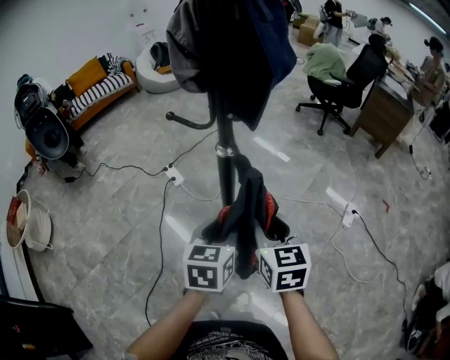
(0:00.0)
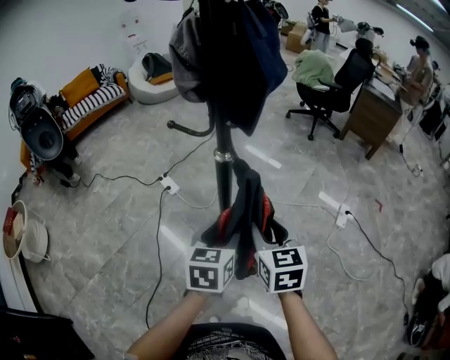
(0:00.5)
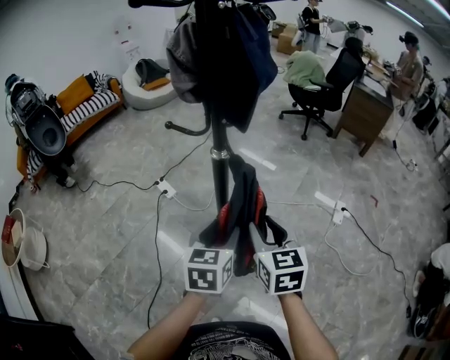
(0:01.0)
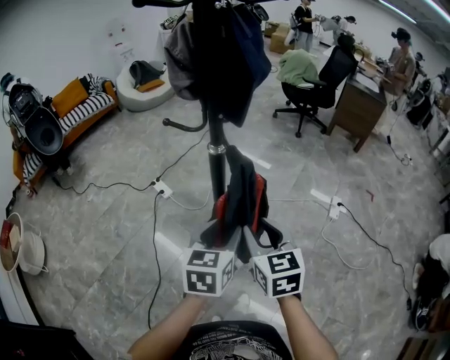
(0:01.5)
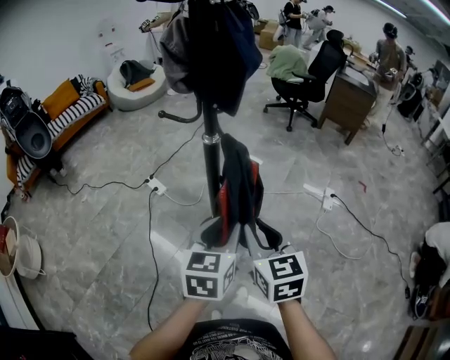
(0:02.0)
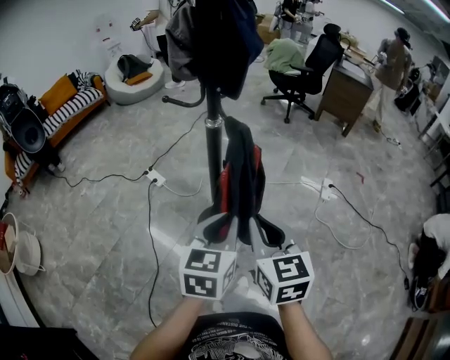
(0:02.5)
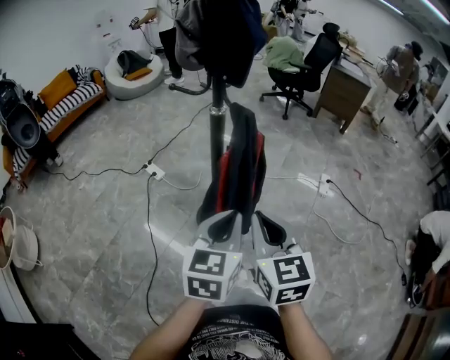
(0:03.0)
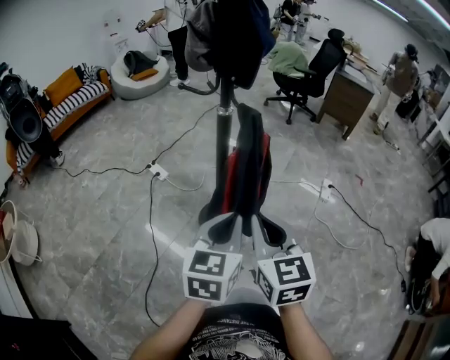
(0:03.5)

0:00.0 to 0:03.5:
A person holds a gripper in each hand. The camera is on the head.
0:00.0 to 0:02.0: The right gripper moves backward, some 10 cm. Meanwhile the left gripper goes approximately 10 cm backward and upward.
0:02.0 to 0:03.5: The two grippers go about 10 cm backward. The left gripper closes, while the right gripper closes up.

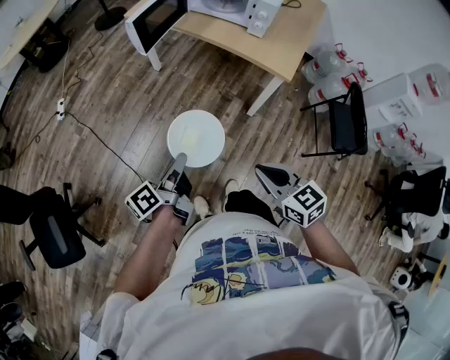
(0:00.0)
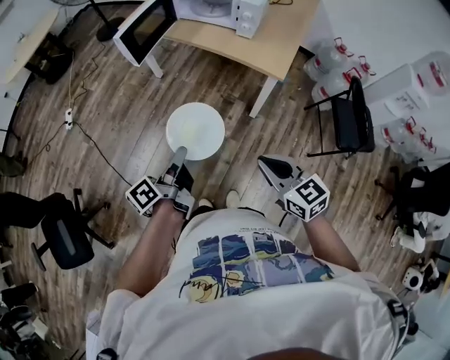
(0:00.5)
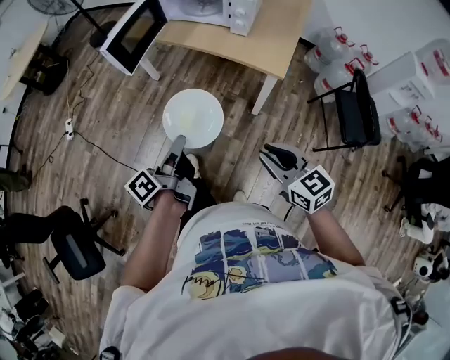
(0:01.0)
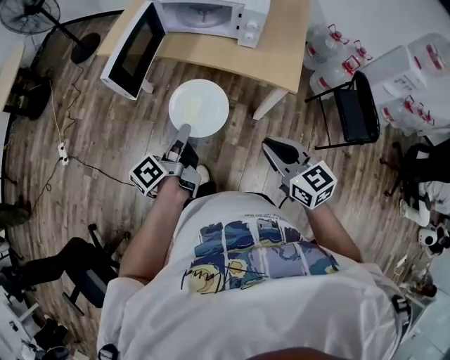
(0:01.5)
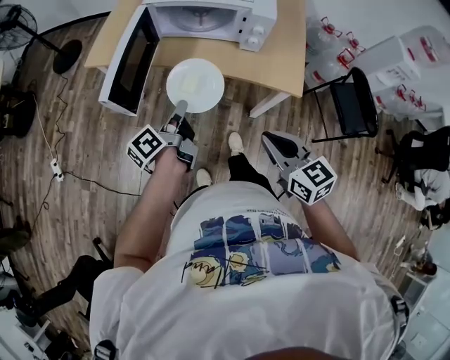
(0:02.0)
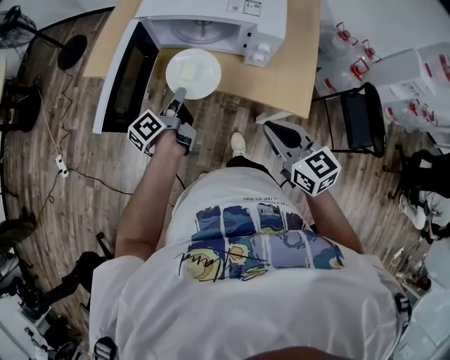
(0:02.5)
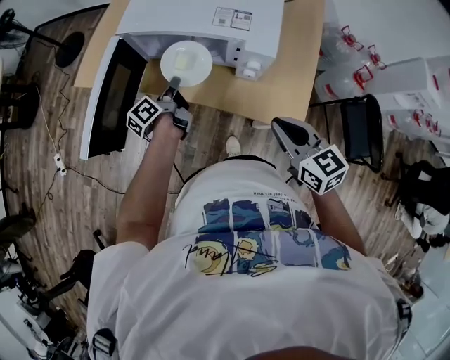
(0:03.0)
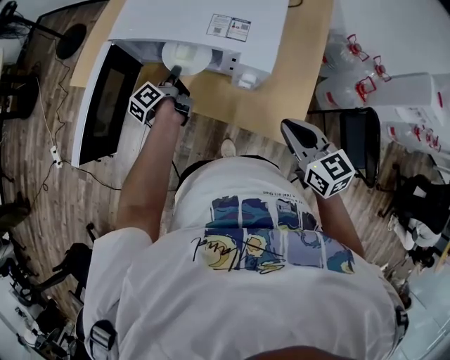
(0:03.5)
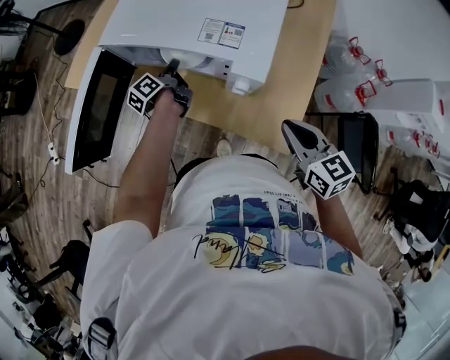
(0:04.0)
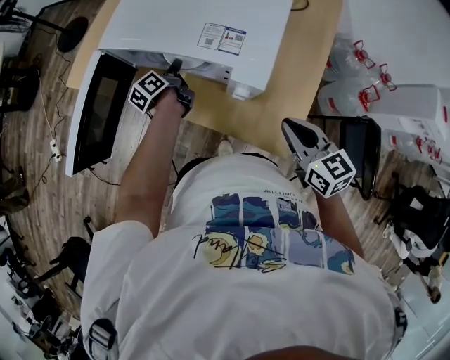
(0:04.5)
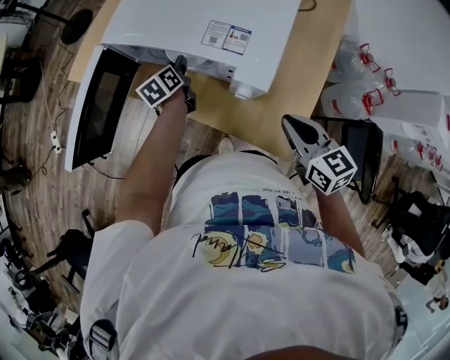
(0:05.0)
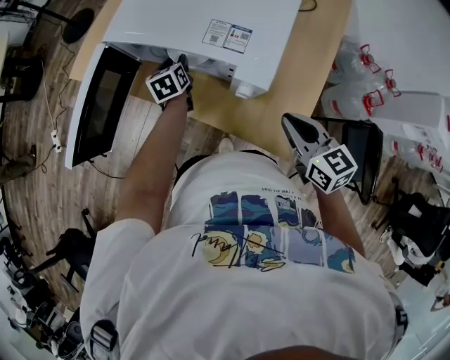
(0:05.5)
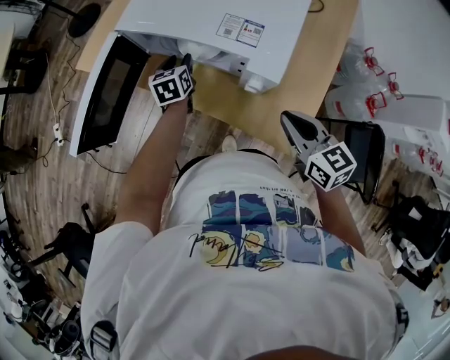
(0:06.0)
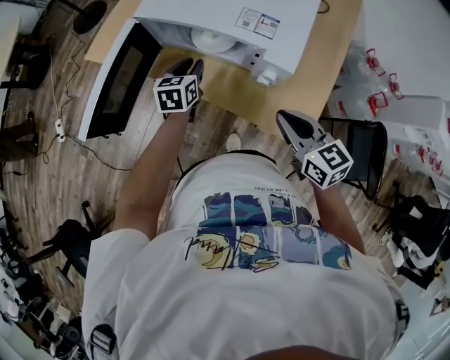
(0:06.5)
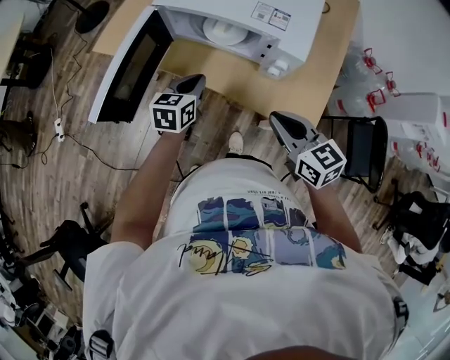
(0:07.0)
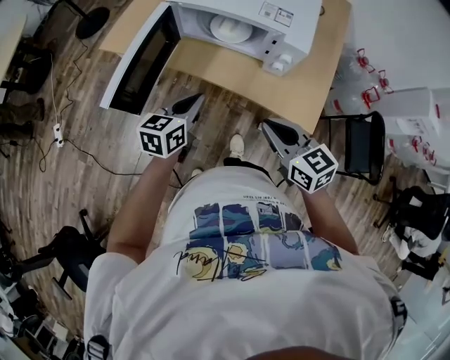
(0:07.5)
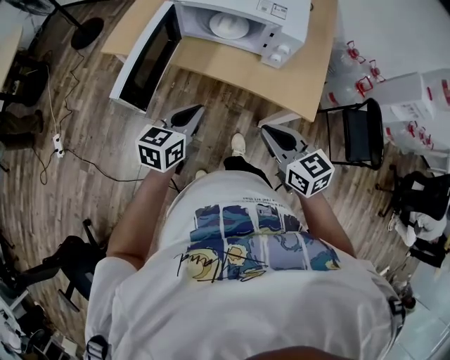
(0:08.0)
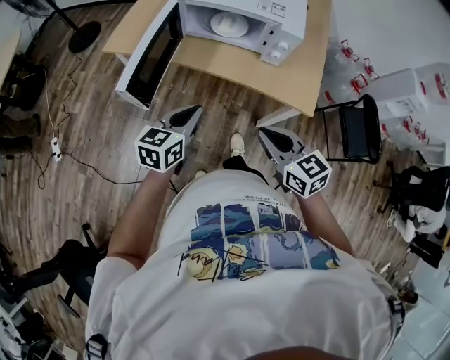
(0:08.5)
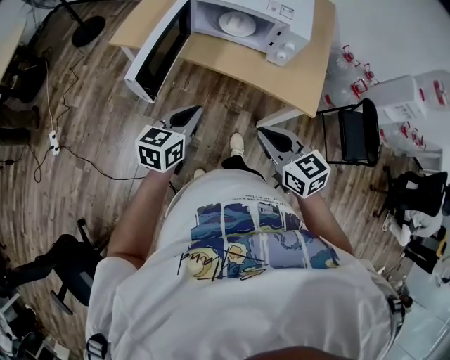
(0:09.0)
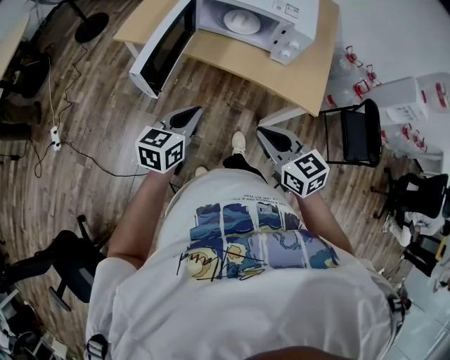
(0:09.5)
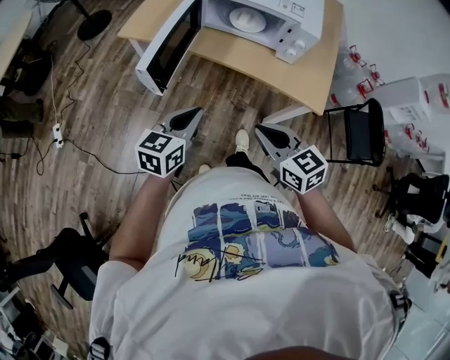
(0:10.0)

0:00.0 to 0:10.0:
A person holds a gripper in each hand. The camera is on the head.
0:00.0 to 0:02.0: The two grippers go roughly 35 cm forward. The right gripper swivels some 20 degrees.
0:02.0 to 0:04.0: The left gripper travels forward by about 30 cm. The right gripper moves forward and to the right, roughly 30 cm.
0:04.0 to 0:06.0: The left gripper rolls clockwise, seen from behind, by approximately 60 degrees, and opens up.
0:06.0 to 0:08.0: The left gripper heads backward, covering roughly 30 cm, rotates about 40 degrees, and closes up. The right gripper shifts approximately 25 cm to the left and backward.
0:08.0 to 0:10.0: Both grippers travel together to the left and backward, approximately 10 cm.

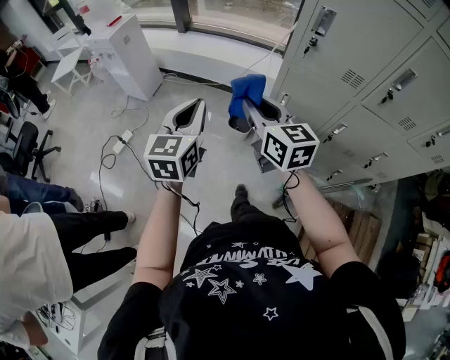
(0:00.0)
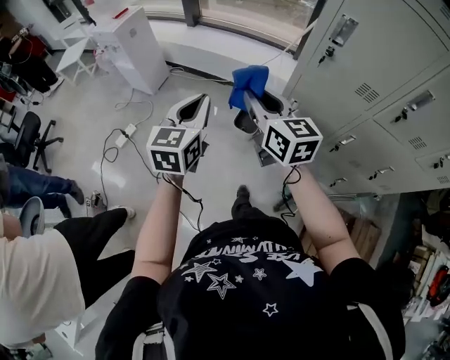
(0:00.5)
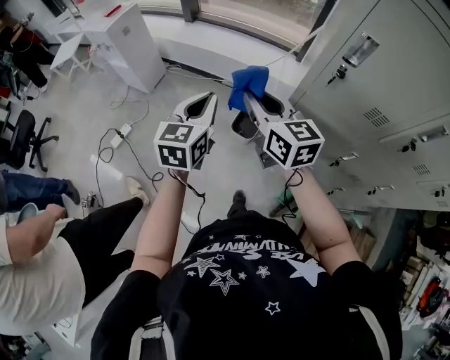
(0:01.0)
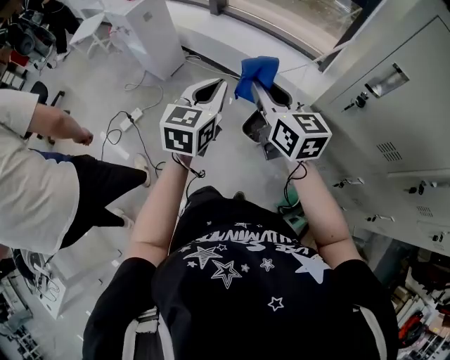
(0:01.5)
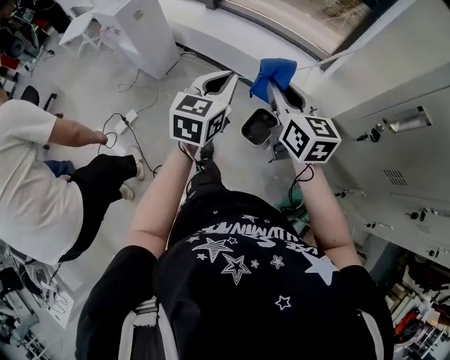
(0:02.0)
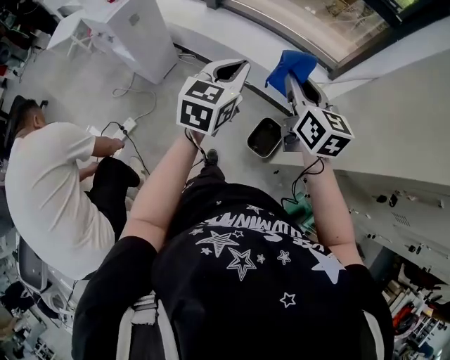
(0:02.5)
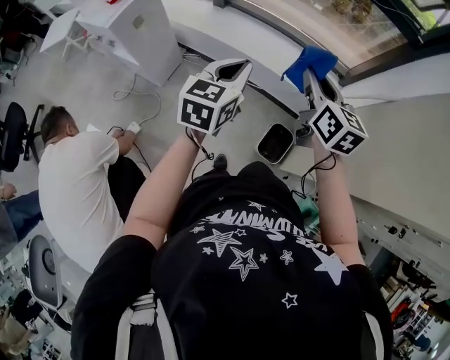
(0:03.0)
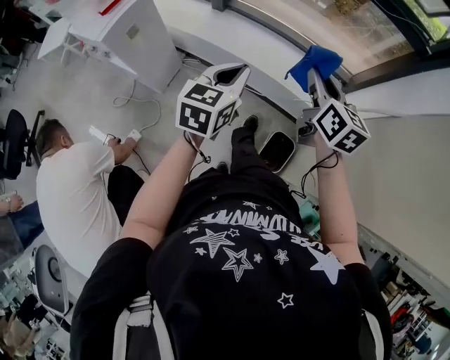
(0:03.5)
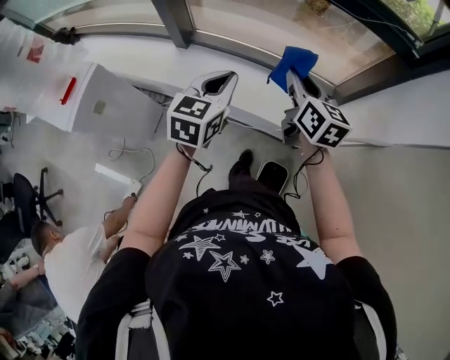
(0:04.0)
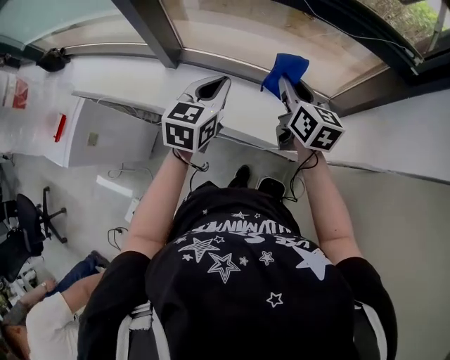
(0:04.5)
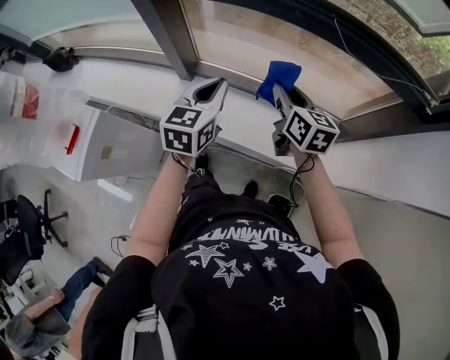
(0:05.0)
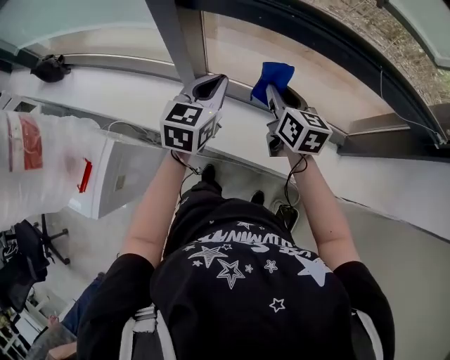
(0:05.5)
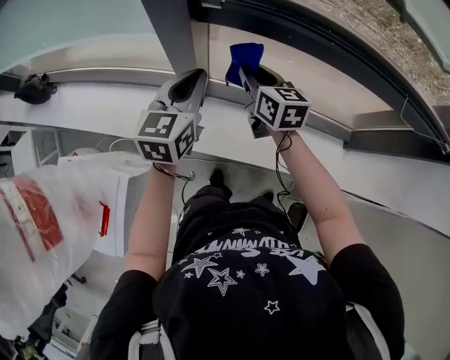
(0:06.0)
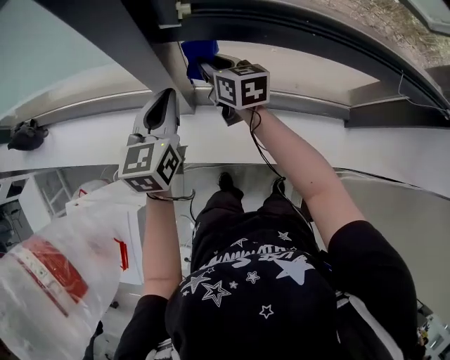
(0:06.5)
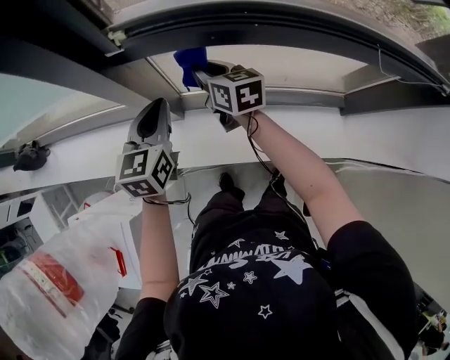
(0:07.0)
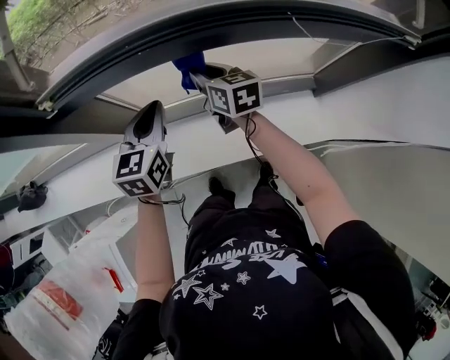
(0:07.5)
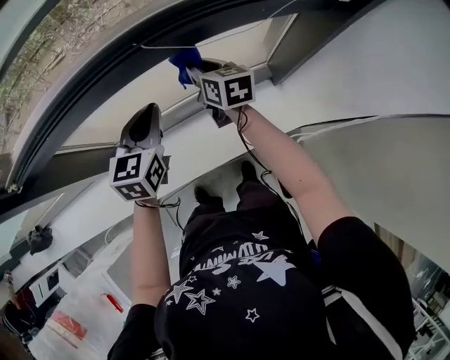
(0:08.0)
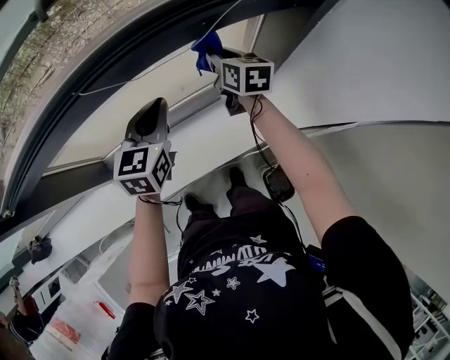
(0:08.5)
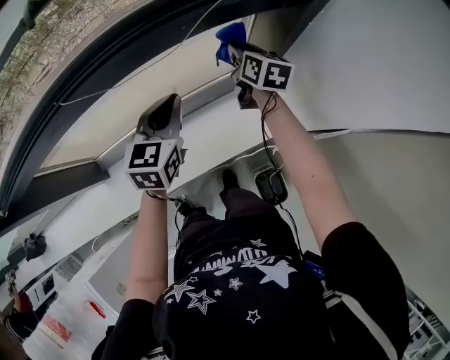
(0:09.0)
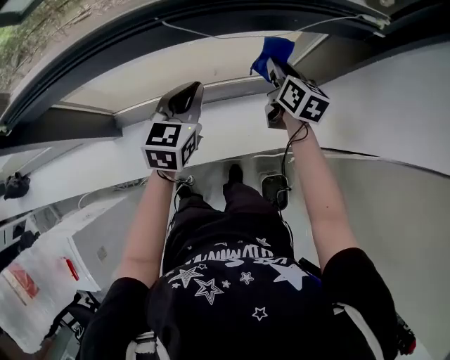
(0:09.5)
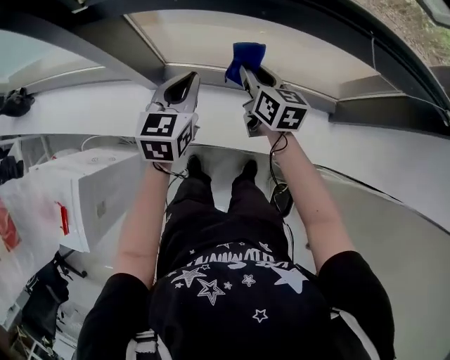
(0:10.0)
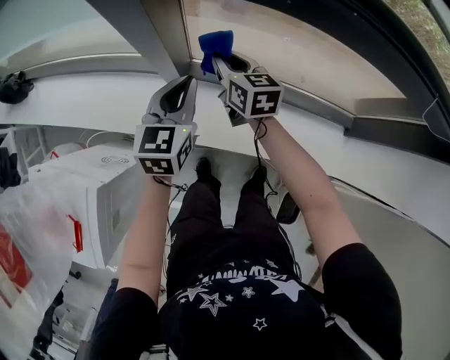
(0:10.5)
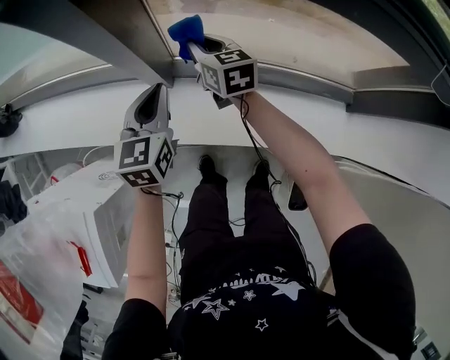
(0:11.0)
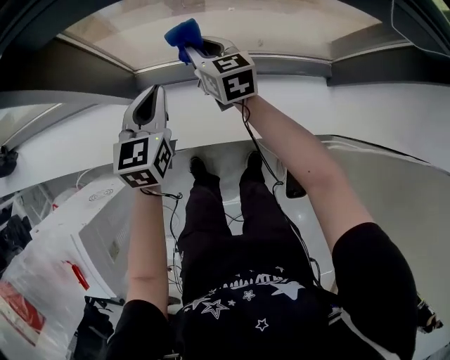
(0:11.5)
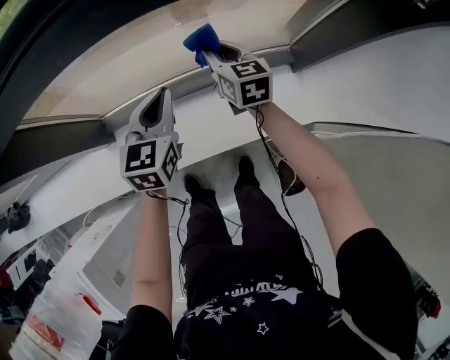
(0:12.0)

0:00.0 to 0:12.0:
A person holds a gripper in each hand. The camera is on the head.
0:00.0 to 0:02.0: The grippers both shift forward by some 25 cm.
0:02.0 to 0:04.0: The pair of grippers is taken forward, about 50 cm. The right gripper rotates some 20 degrees.
0:04.0 to 0:06.0: The pair of grippers is taken to the left and forward, some 50 cm.
0:06.0 to 0:08.0: The two grippers go about 40 cm to the right. The left gripper swivels roughly 30 degrees. Meanwhile the right gripper rotates about 30 degrees.
0:08.0 to 0:10.0: The right gripper ends up roughly 20 cm from where it was. The left gripper ends up roughly 20 cm from where it was, and rotates approximately 20 degrees.
0:10.0 to 0:12.0: The right gripper moves to the right and downward, about 20 cm. The left gripper goes roughly 20 cm to the right.

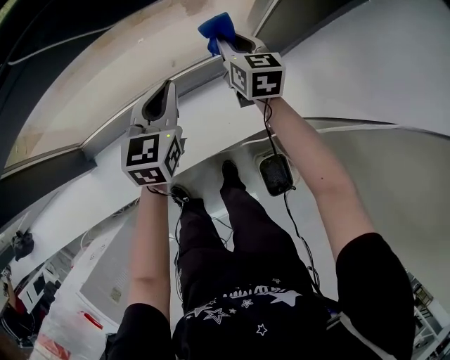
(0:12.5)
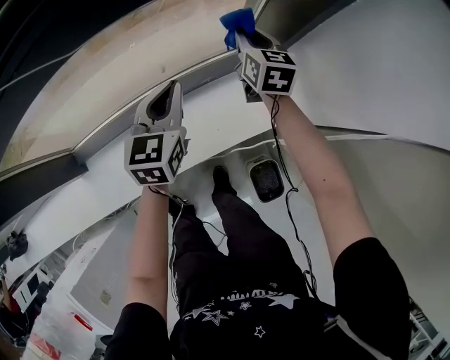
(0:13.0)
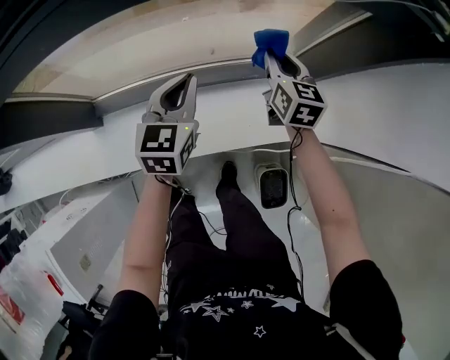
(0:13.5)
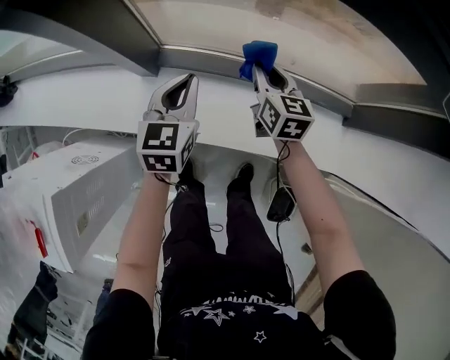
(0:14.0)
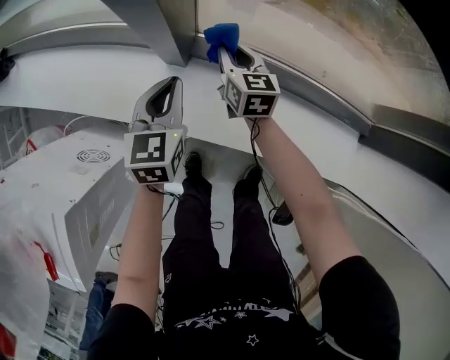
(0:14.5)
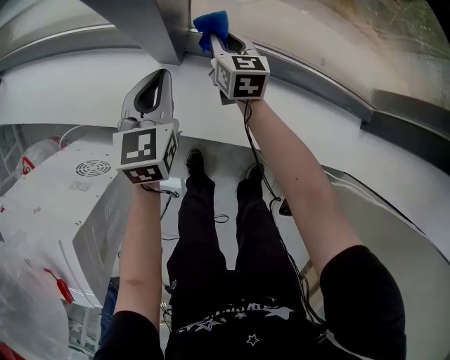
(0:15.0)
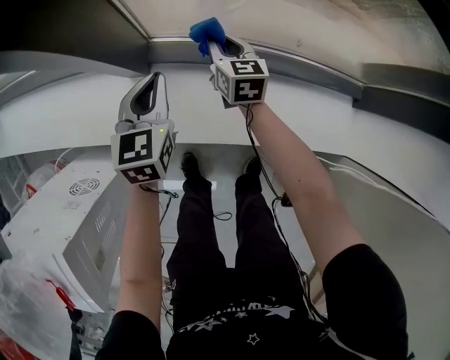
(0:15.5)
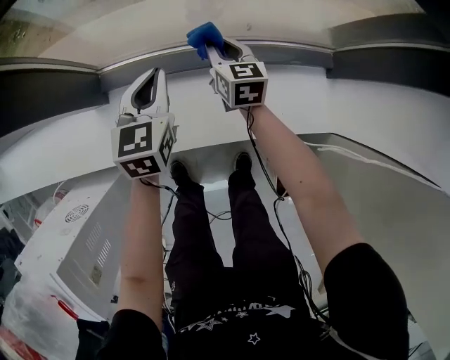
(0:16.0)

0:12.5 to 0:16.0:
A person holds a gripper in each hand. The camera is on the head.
0:12.5 to 0:14.5: The pair of grippers is taken approximately 50 cm. The right gripper changes its angle by approximately 30 degrees, while the left gripper turns by about 40 degrees.
0:14.5 to 0:16.0: Both grippers travel together to the right, some 25 cm.
